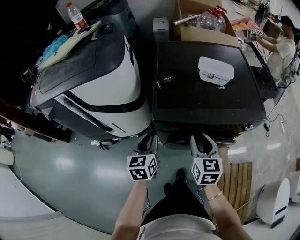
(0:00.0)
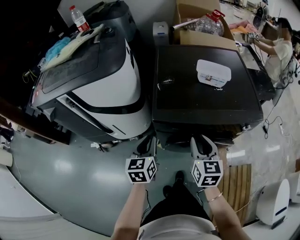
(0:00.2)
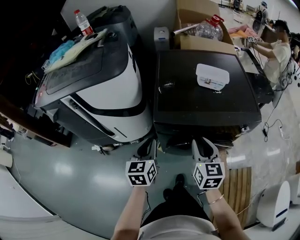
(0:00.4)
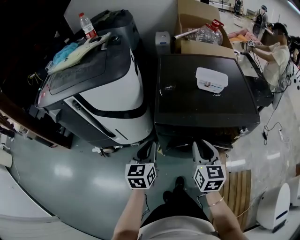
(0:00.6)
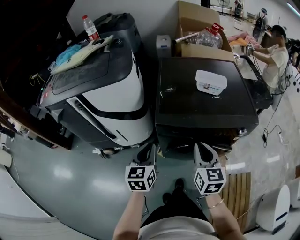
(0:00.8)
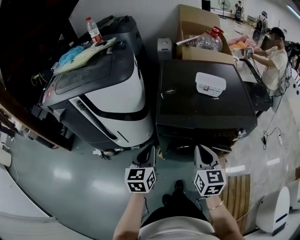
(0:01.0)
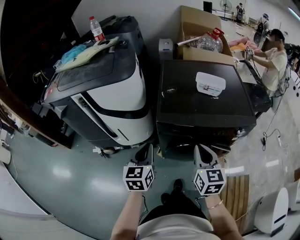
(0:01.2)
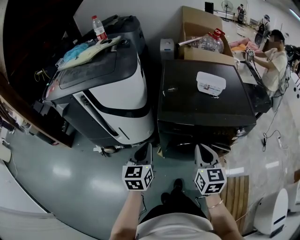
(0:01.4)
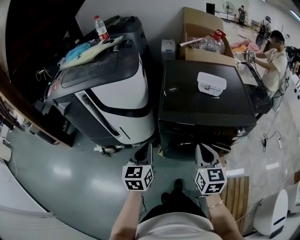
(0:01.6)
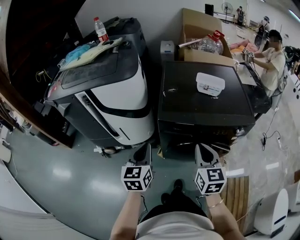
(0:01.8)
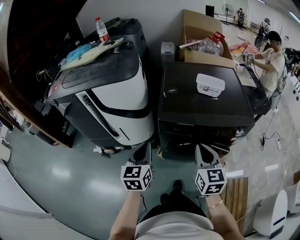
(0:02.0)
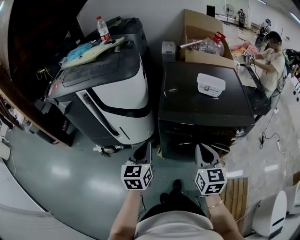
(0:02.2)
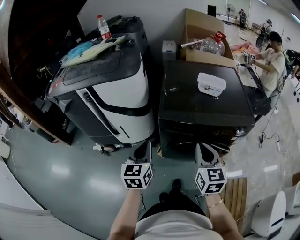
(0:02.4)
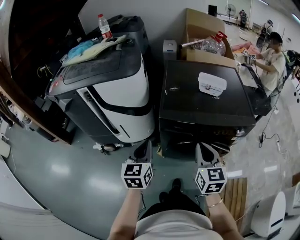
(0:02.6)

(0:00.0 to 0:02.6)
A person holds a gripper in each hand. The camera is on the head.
0:00.0 - 0:01.2: Both grippers travel together backward and upward, roughly 10 cm. The right gripper closes its fingers.
0:01.2 - 0:02.6: There are only small adjustments of the grippers.

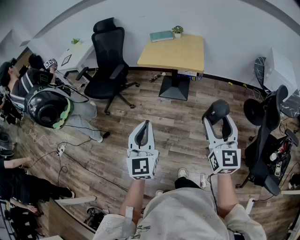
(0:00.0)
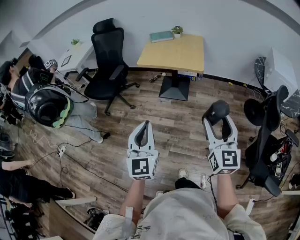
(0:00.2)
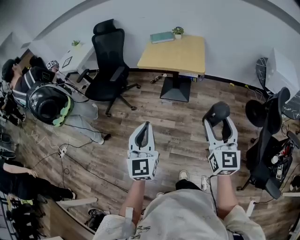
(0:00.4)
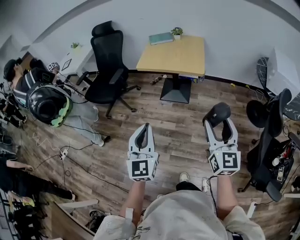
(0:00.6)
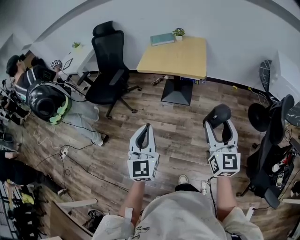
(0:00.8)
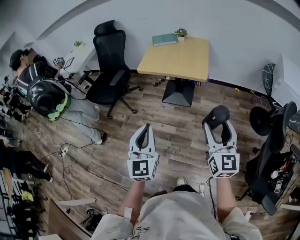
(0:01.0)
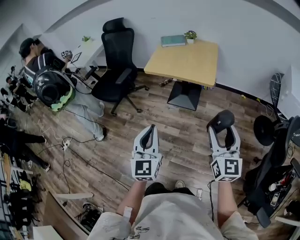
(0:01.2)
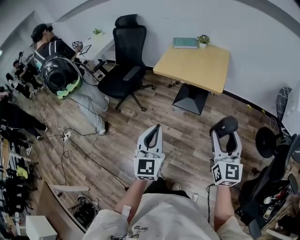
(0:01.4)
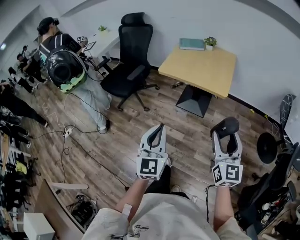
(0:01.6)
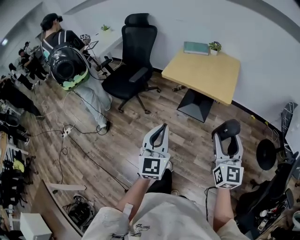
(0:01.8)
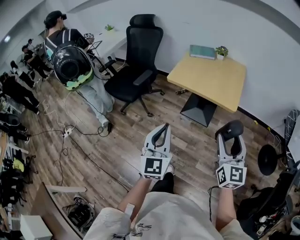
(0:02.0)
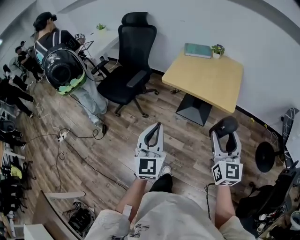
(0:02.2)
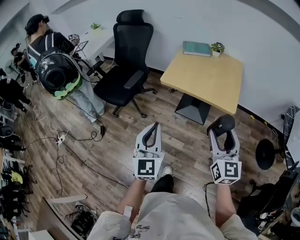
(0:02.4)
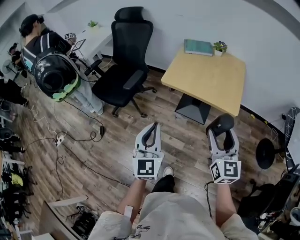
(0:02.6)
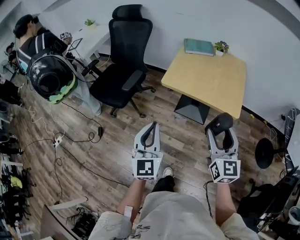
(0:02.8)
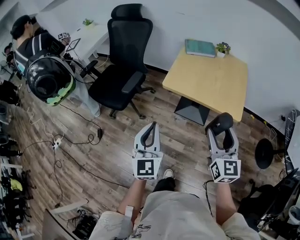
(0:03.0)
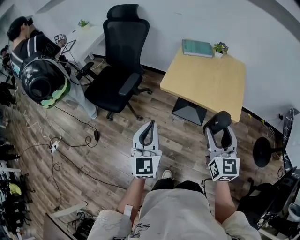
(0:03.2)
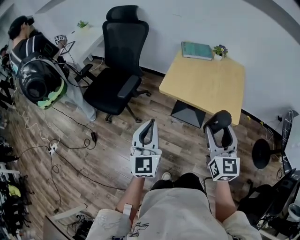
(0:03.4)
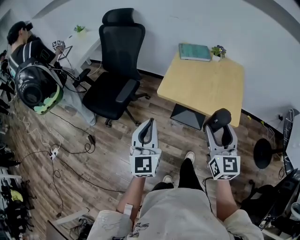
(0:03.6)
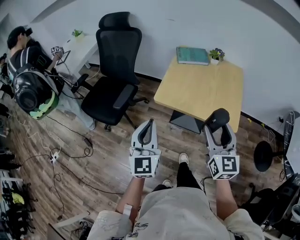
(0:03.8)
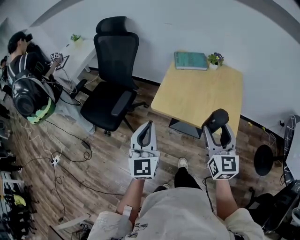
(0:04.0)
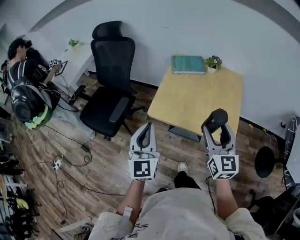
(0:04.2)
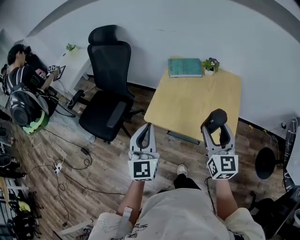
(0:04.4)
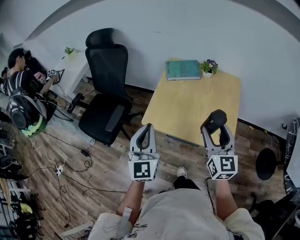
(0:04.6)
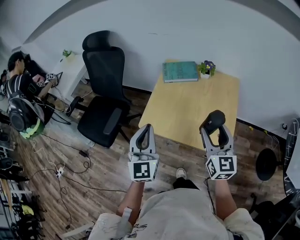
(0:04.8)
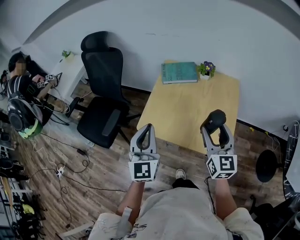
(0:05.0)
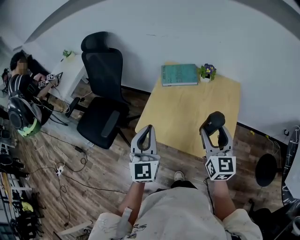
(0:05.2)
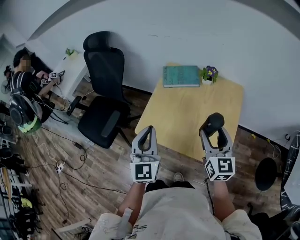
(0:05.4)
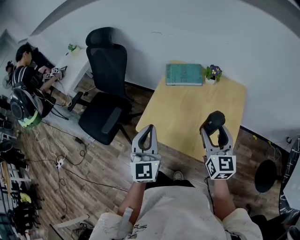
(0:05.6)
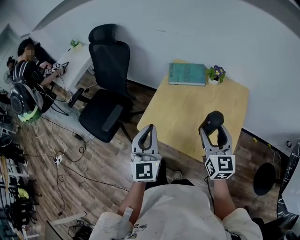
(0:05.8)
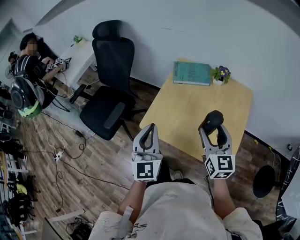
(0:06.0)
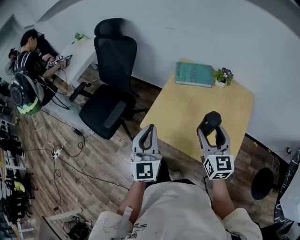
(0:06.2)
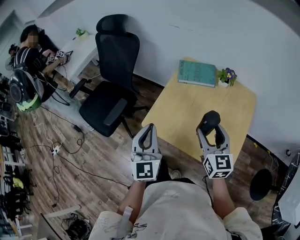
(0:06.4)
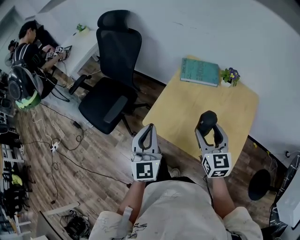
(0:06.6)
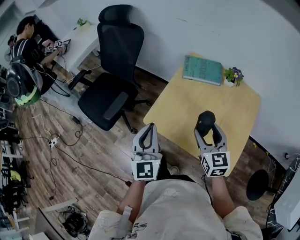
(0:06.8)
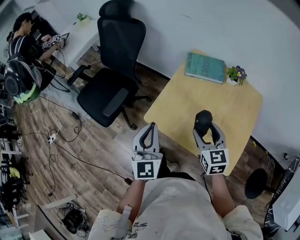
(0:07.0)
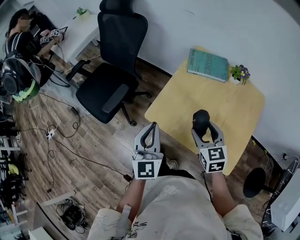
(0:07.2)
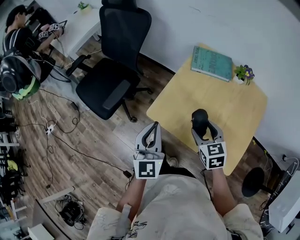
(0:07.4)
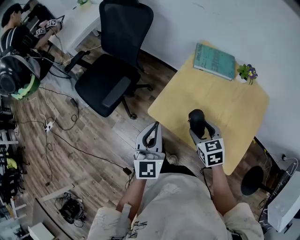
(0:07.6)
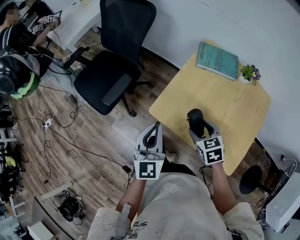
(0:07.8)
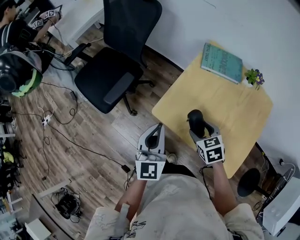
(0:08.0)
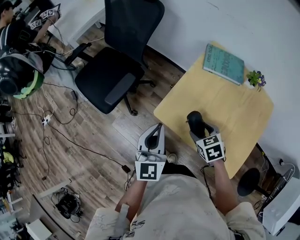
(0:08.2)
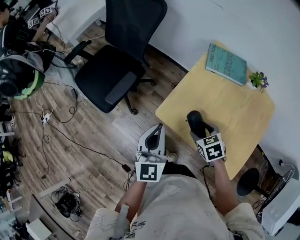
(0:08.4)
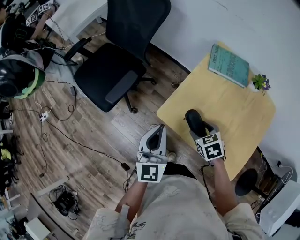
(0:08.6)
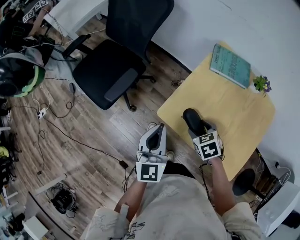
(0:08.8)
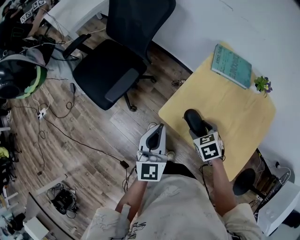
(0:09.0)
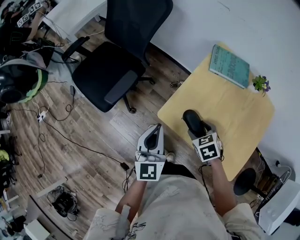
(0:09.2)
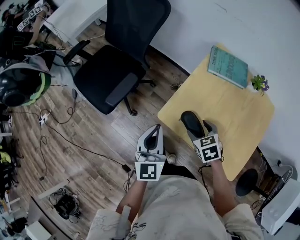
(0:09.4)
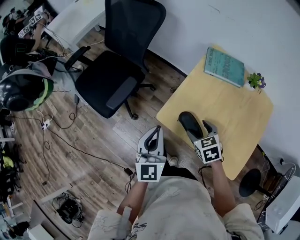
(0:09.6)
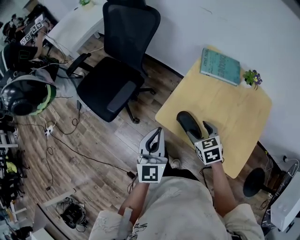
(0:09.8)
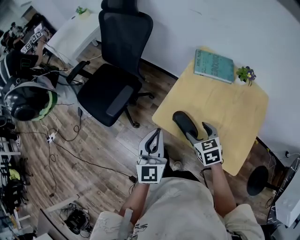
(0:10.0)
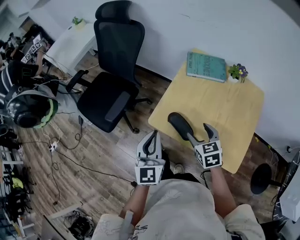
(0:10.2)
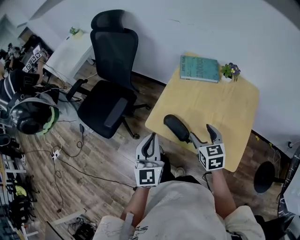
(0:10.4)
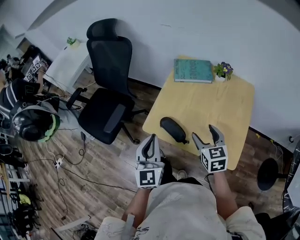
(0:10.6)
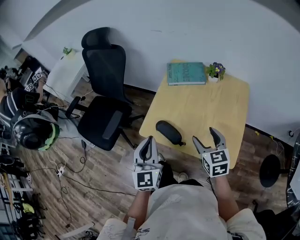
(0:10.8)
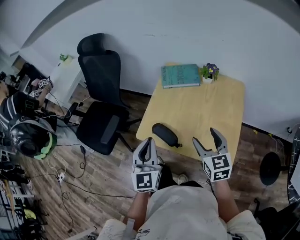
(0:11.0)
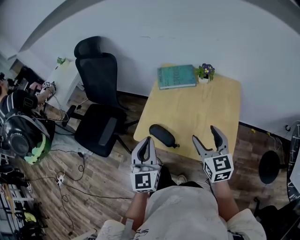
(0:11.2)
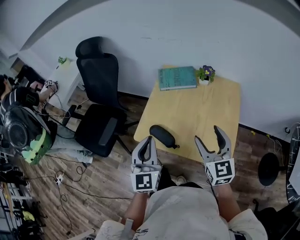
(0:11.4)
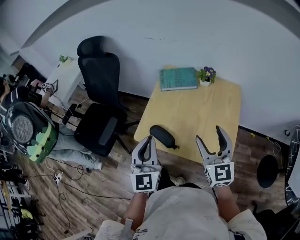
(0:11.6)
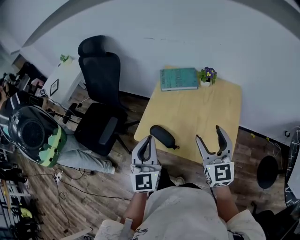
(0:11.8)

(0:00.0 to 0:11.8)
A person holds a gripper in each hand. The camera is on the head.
0:00.0 - 0:01.4: The grippers both shift forward and to the right by some 15 cm.
0:01.4 - 0:03.0: The grippers both shift forward and to the left by approximately 35 cm.
0:03.0 - 0:04.4: The two grippers go roughly 25 cm forward and to the right.
0:04.4 - 0:06.0: The right gripper shifts approximately 15 cm forward and downward, while the left gripper shifts approximately 10 cm forward and to the right.
0:06.0 - 0:07.4: The right gripper shifts approximately 15 cm downward and to the left, and tilts its fingers approximately 30 degrees downward. The left gripper heads downward and to the left, covering about 10 cm.
0:07.4 - 0:08.8: The right gripper is displaced downward and to the left by some 10 cm, and turns by some 30 degrees. The left gripper moves some 10 cm.
0:08.8 - 0:10.4: The right gripper shifts about 15 cm upward, to the right and backward, and changes its angle by about 40 degrees. Meanwhile the left gripper heads upward and backward, covering some 10 cm.
0:10.4 - 0:11.8: The right gripper shifts approximately 15 cm upward and to the right, and angles its fingers upward, by approximately 30 degrees, while the left gripper moves to the right and upward, some 10 cm.

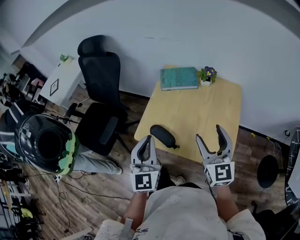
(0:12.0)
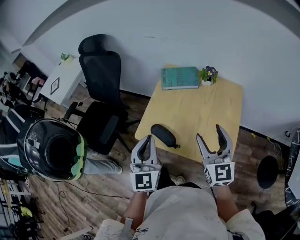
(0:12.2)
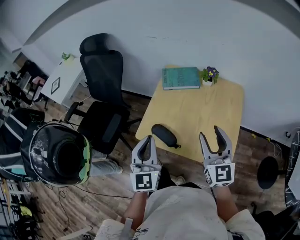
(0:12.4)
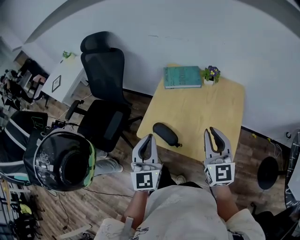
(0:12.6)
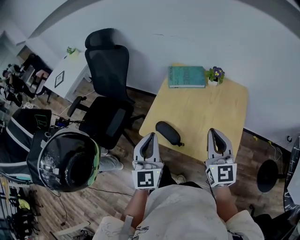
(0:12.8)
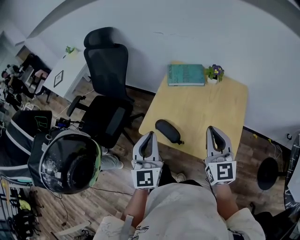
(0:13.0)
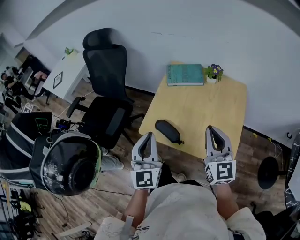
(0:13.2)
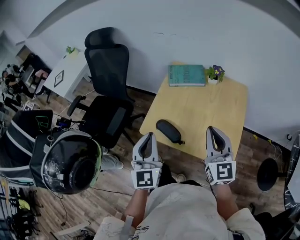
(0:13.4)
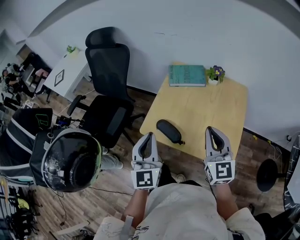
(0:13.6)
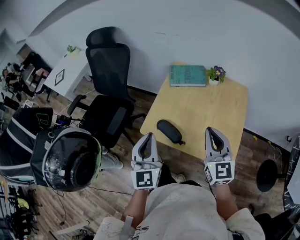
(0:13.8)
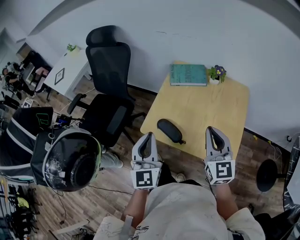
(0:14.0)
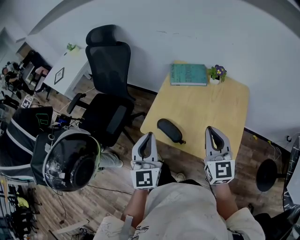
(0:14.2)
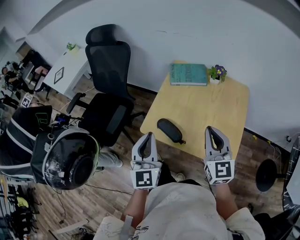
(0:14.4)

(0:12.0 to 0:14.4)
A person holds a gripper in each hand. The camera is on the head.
0:12.0 - 0:13.2: The right gripper closes up.
0:13.2 - 0:14.4: There are only small adjustments of the grippers.

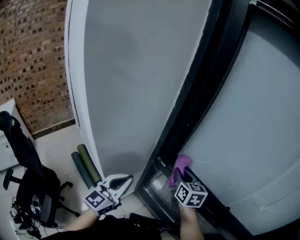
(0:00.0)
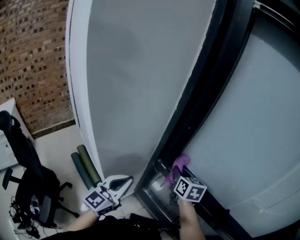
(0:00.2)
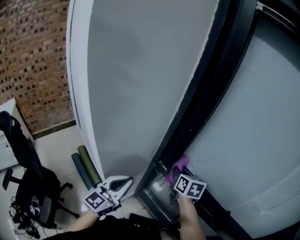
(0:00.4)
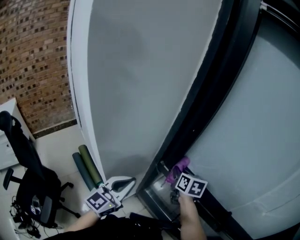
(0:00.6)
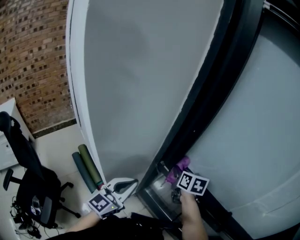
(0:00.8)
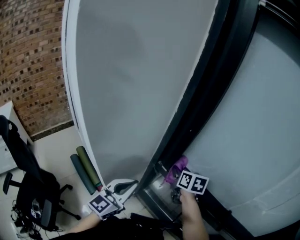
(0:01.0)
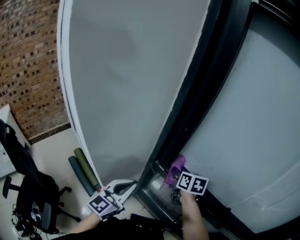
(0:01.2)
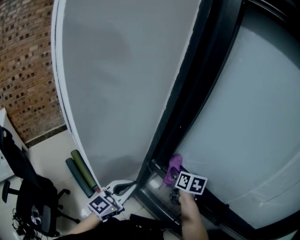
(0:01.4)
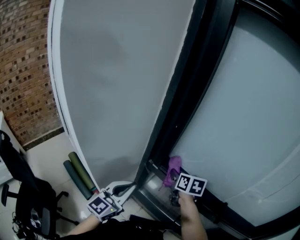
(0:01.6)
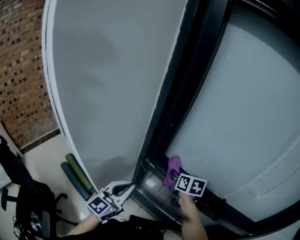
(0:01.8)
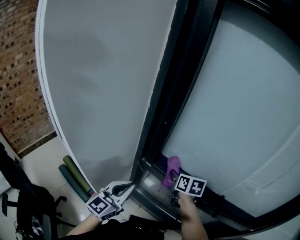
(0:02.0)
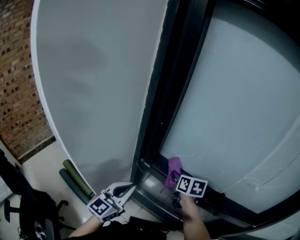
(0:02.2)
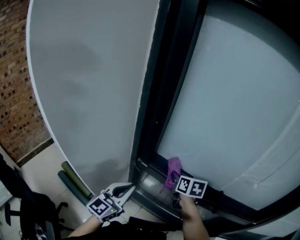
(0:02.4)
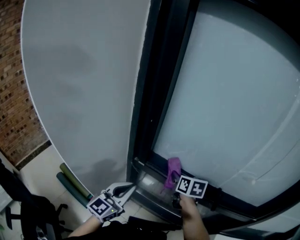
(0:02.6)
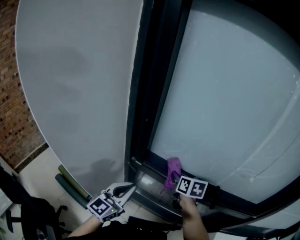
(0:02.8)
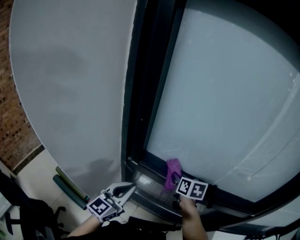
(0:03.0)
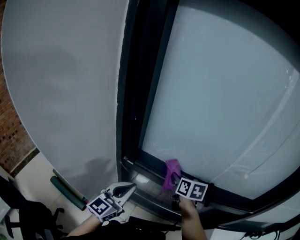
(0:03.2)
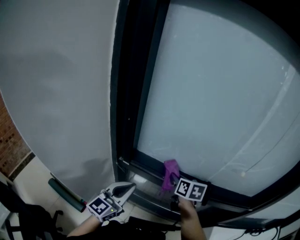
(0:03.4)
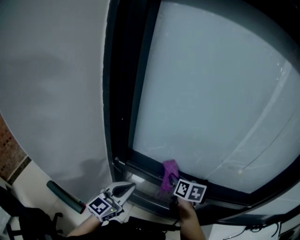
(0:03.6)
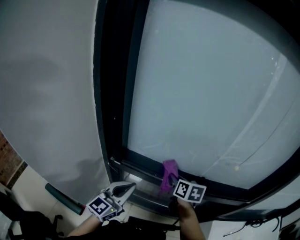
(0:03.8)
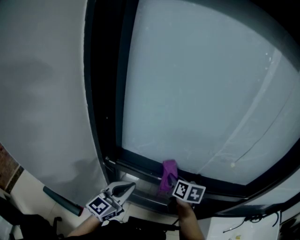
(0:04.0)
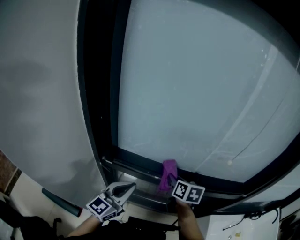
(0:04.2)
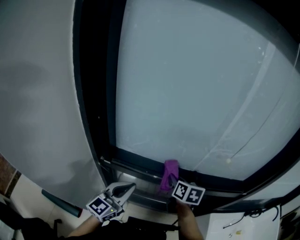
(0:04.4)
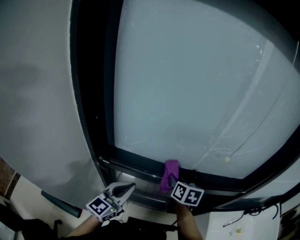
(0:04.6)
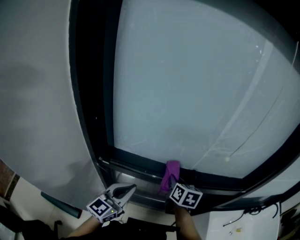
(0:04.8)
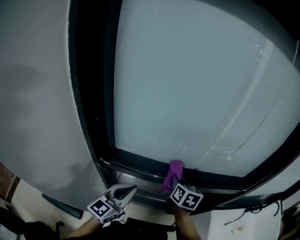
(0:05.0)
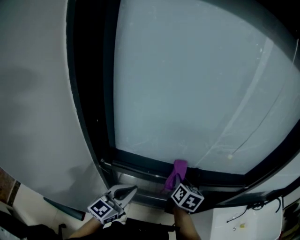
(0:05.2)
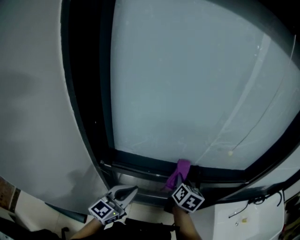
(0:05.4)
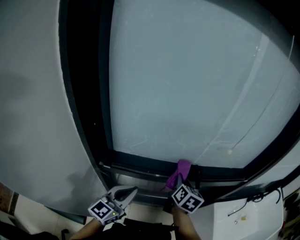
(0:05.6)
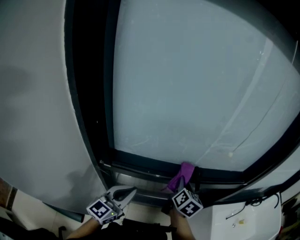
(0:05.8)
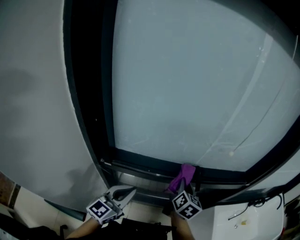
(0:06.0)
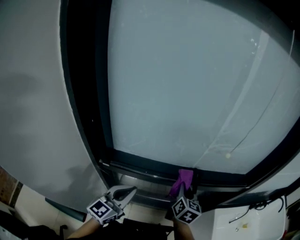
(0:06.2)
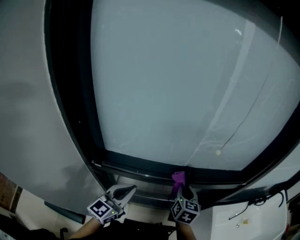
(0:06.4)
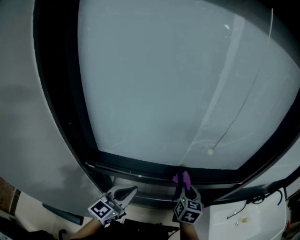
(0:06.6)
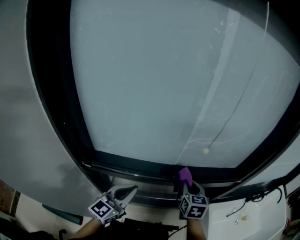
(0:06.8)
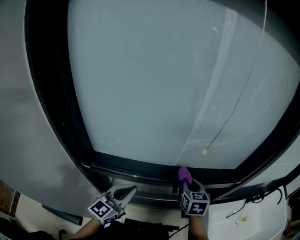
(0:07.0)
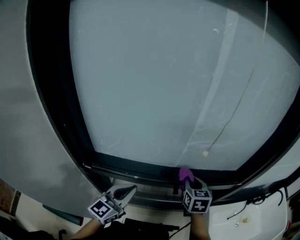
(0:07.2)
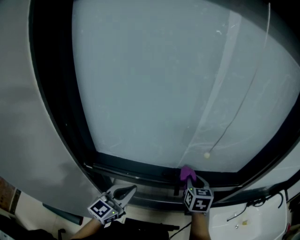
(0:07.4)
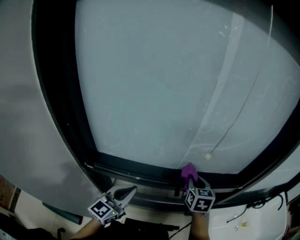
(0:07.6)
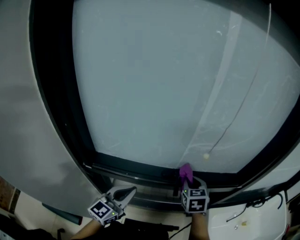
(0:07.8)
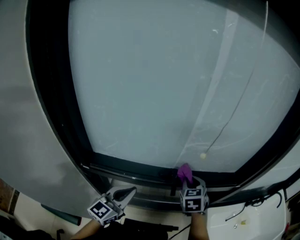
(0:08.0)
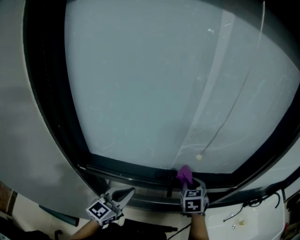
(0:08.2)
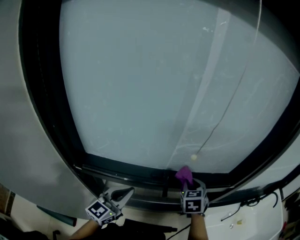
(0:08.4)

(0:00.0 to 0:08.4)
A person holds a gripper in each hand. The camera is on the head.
0:00.0 - 0:01.4: There are only small adjustments of the grippers.
0:01.4 - 0:02.8: The right gripper moves to the right, approximately 10 cm. Meanwhile the left gripper heads to the right, covering roughly 5 cm.
0:02.8 - 0:04.2: Both grippers move to the right, about 10 cm.
0:04.2 - 0:05.6: The right gripper is displaced to the right by some 5 cm, and changes its angle by approximately 30 degrees.
0:05.6 - 0:07.0: The right gripper shifts approximately 10 cm to the right, and changes its angle by some 30 degrees; the left gripper moves to the right and forward, roughly 10 cm.
0:07.0 - 0:08.4: The grippers stay close to where they were, moving slightly.
